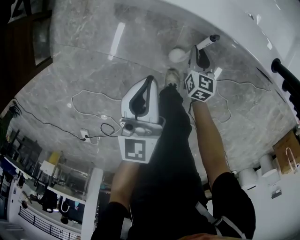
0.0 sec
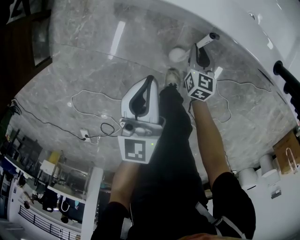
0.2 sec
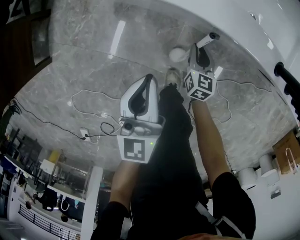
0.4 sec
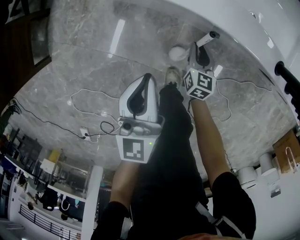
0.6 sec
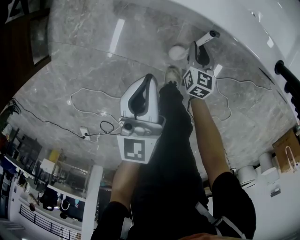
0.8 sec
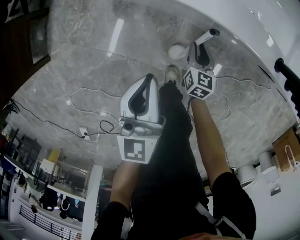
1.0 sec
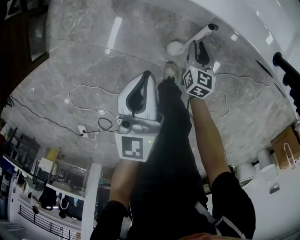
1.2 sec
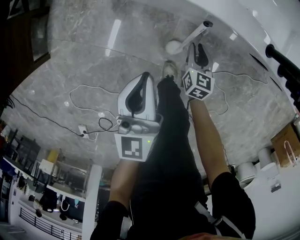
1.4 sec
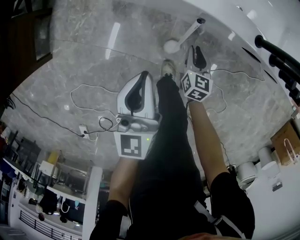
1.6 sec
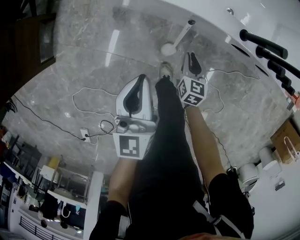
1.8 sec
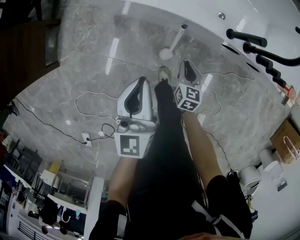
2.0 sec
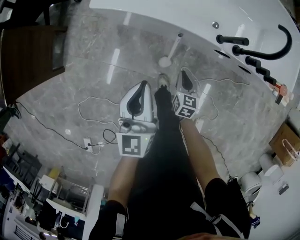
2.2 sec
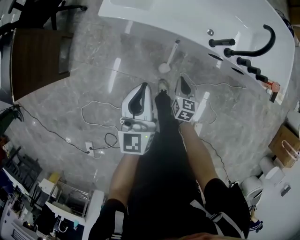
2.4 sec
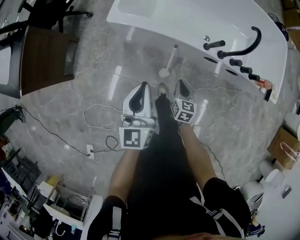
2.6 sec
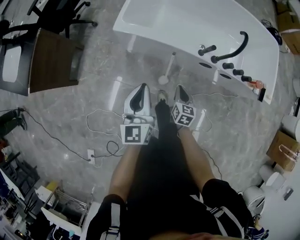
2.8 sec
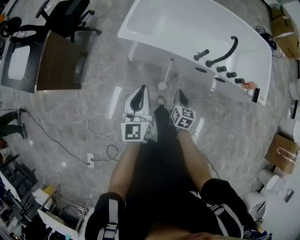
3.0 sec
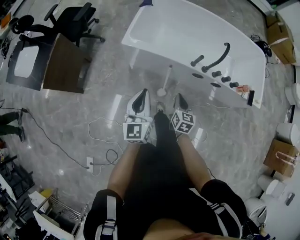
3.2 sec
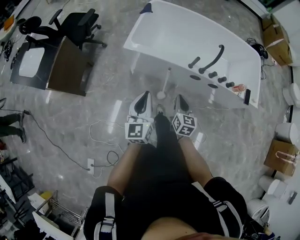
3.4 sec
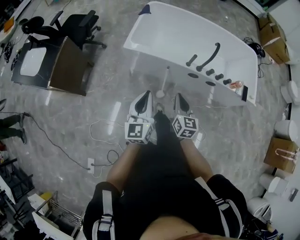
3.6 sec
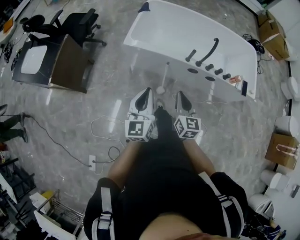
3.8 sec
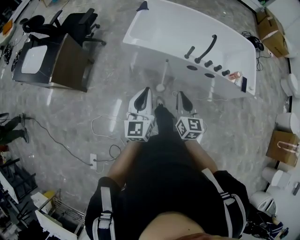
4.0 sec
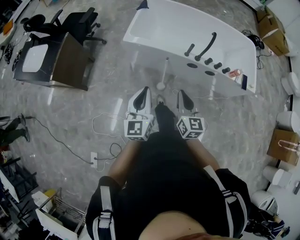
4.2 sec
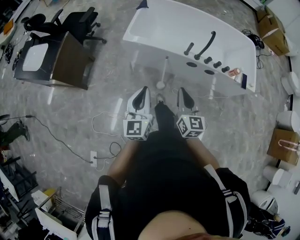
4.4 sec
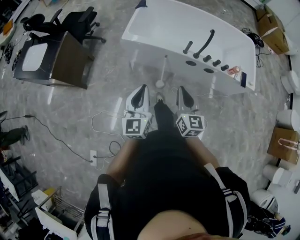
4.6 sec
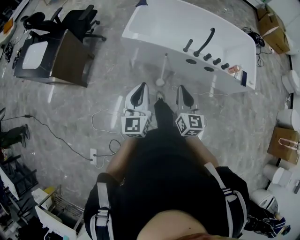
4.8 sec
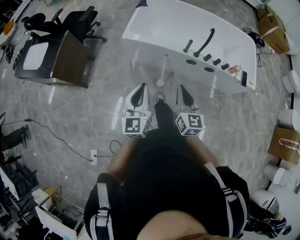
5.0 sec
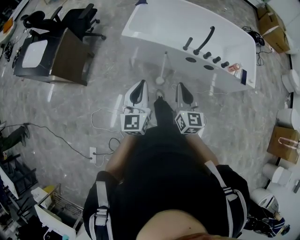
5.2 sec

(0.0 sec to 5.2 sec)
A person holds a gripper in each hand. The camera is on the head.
0.0 sec - 1.8 sec: The right gripper moves upward and backward, approximately 15 cm, while the left gripper goes about 10 cm upward.
1.8 sec - 3.4 sec: The left gripper shifts about 40 cm upward and backward. The right gripper travels upward by approximately 50 cm.
3.4 sec - 5.2 sec: The right gripper moves upward and backward, about 20 cm. The left gripper moves backward and upward, about 15 cm.

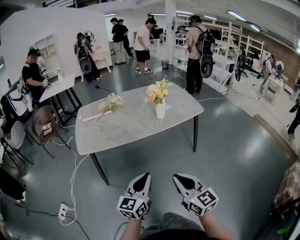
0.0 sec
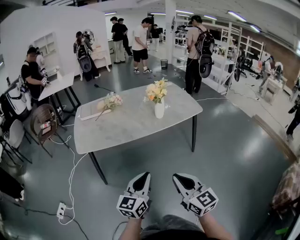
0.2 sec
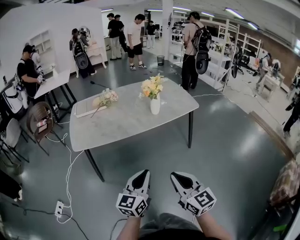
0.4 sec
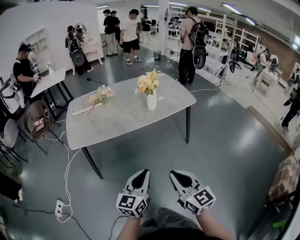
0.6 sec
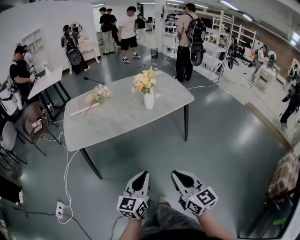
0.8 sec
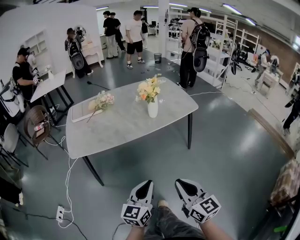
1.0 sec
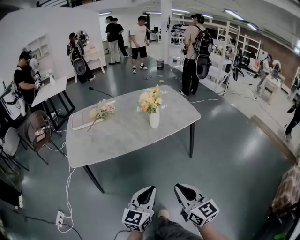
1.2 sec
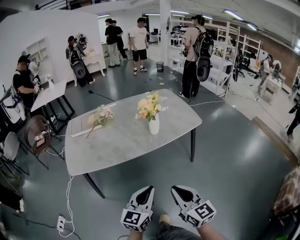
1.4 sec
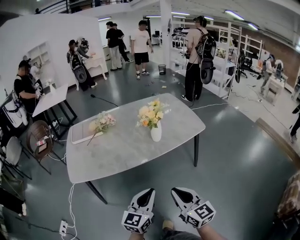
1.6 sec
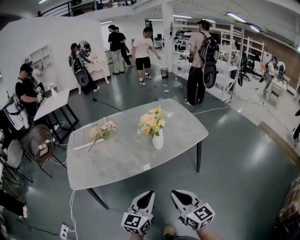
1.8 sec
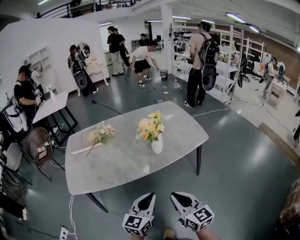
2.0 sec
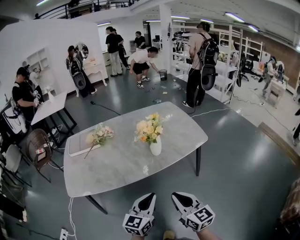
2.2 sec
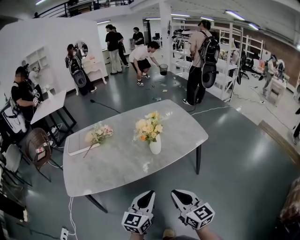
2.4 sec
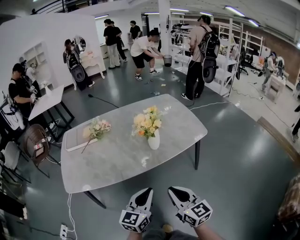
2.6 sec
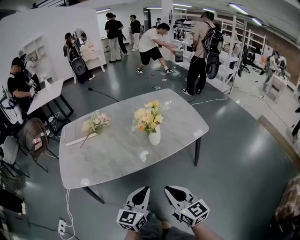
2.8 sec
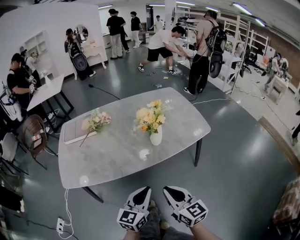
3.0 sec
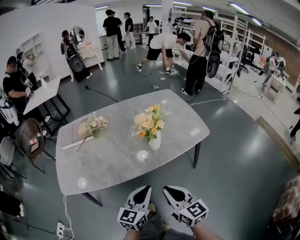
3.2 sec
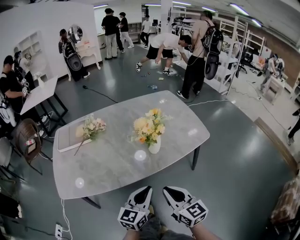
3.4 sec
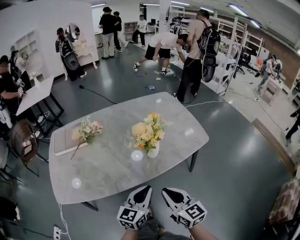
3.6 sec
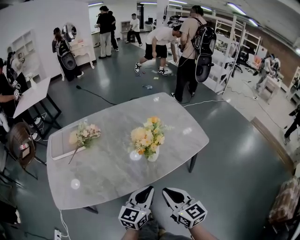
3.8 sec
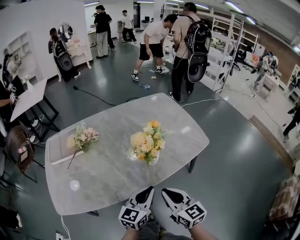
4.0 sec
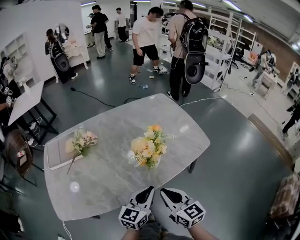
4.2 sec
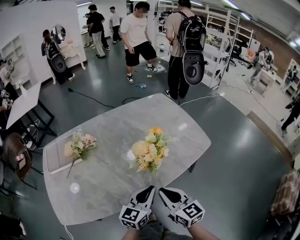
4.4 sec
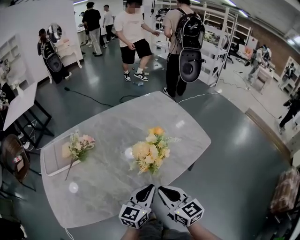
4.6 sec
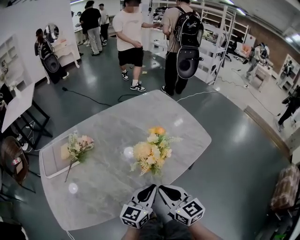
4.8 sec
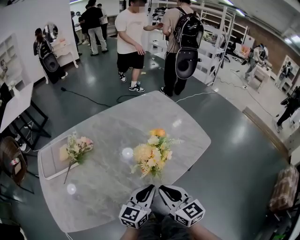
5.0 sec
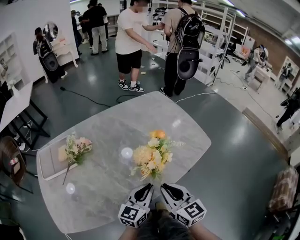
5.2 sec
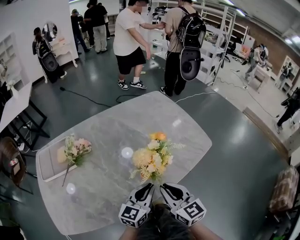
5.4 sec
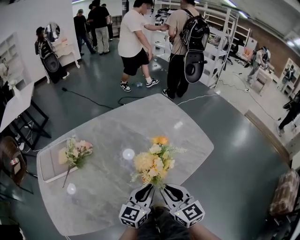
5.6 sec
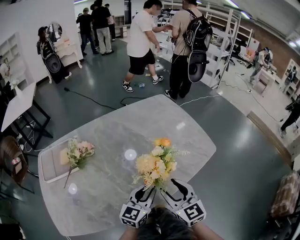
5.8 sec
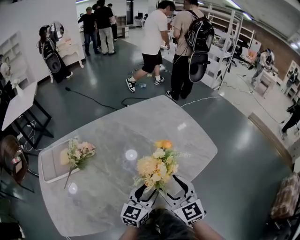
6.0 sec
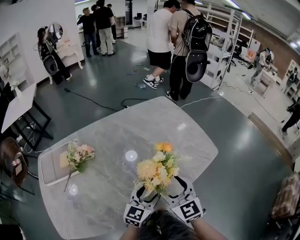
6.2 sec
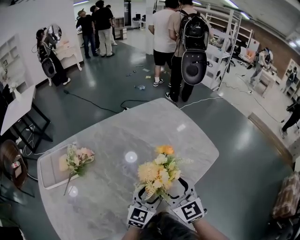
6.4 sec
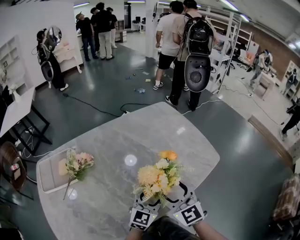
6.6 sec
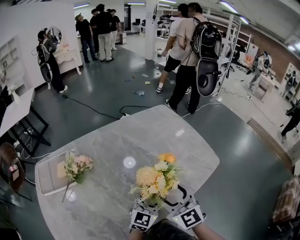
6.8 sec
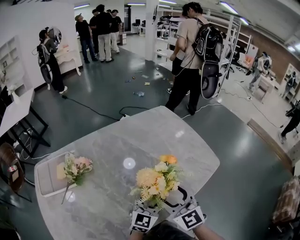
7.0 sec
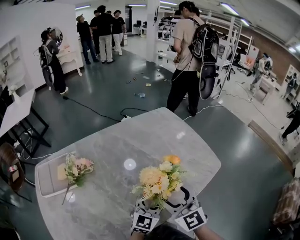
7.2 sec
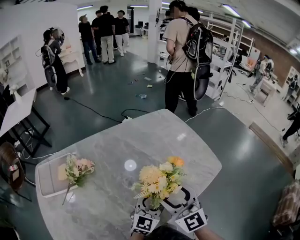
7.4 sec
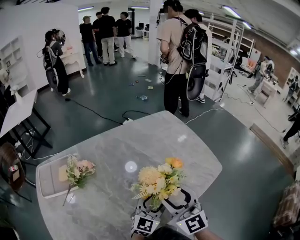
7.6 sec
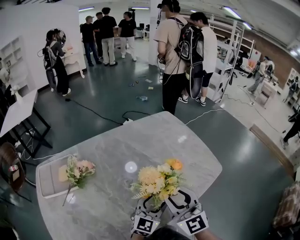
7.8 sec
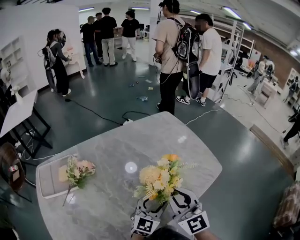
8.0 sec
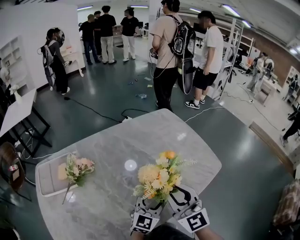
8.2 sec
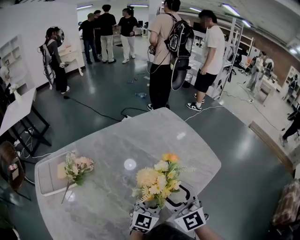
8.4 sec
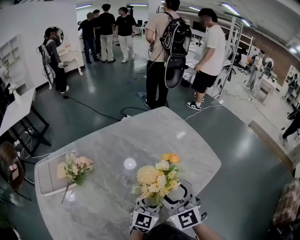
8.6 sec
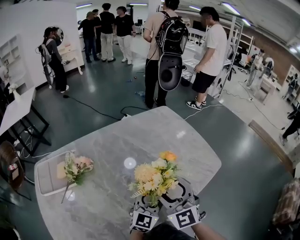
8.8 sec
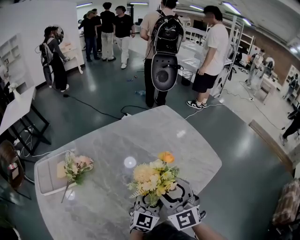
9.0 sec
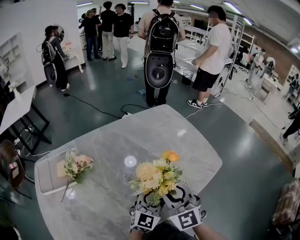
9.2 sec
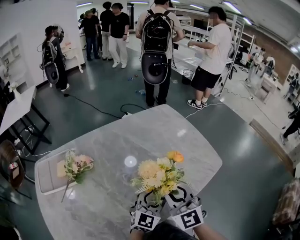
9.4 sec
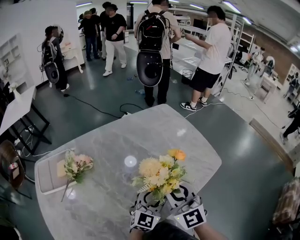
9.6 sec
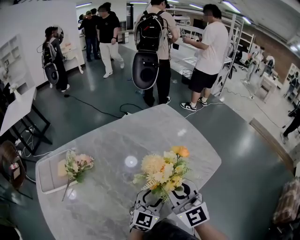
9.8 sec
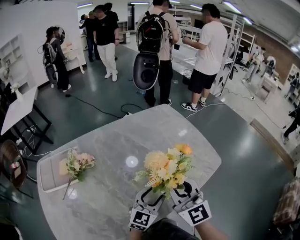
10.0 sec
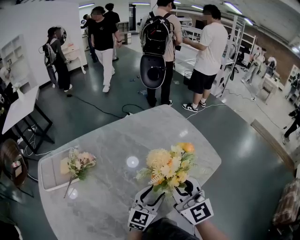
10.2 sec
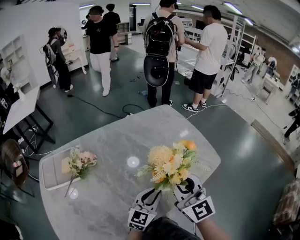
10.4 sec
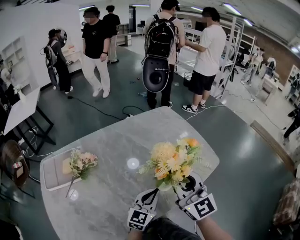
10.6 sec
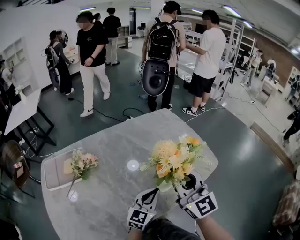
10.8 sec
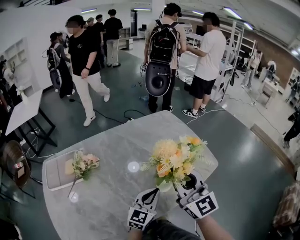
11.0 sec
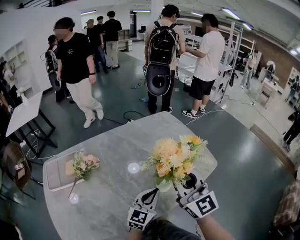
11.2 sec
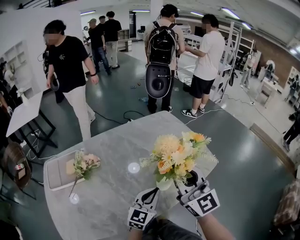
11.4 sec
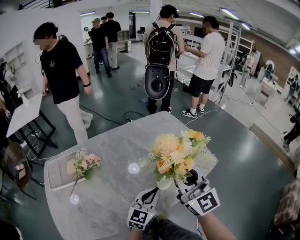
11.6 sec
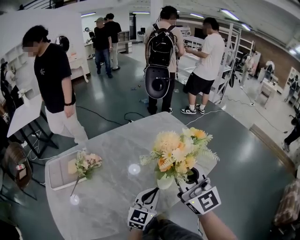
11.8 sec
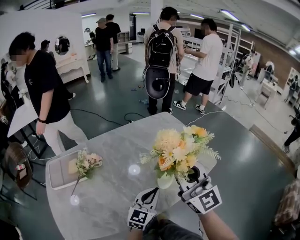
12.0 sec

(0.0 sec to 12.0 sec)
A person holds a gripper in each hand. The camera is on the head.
0.0 sec - 1.6 sec: The right gripper travels forward by some 15 cm. The left gripper goes approximately 15 cm forward and to the right.
1.6 sec - 3.0 sec: Both grippers travel together forward, about 10 cm.
3.0 sec - 4.4 sec: The two grippers go roughly 20 cm forward.
4.4 sec - 6.0 sec: Both grippers travel together forward, roughly 10 cm. The left gripper opens; the right gripper swivels about 20 degrees, and opens.
6.0 sec - 7.6 sec: The two grippers go some 5 cm forward.
7.6 sec - 9.0 sec: The right gripper closes, then opens again.
9.0 sec - 10.4 sec: The left gripper closes. Meanwhile the right gripper shifts roughly 5 cm upward, swivels approximately 20 degrees, and closes up.
10.4 sec - 12.0 sec: The left gripper travels upward by some 5 cm; the right gripper shifts some 10 cm upward.

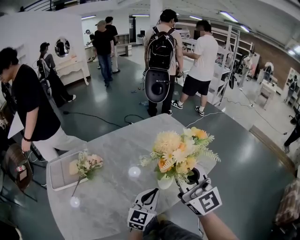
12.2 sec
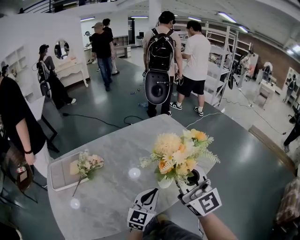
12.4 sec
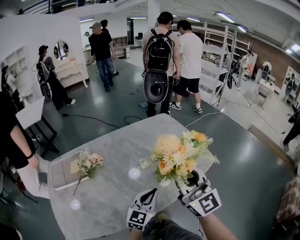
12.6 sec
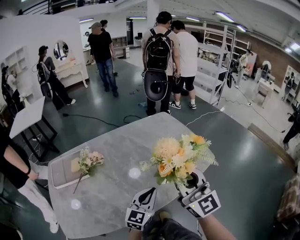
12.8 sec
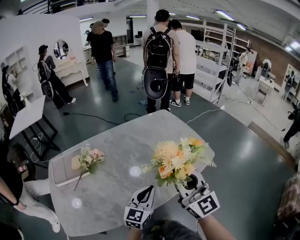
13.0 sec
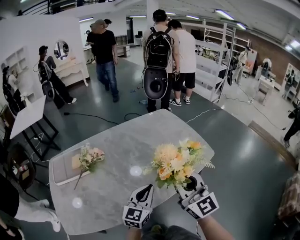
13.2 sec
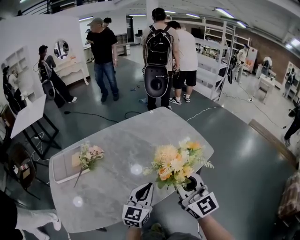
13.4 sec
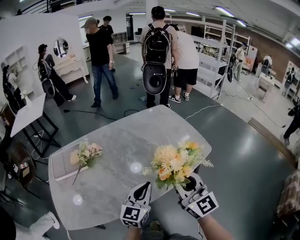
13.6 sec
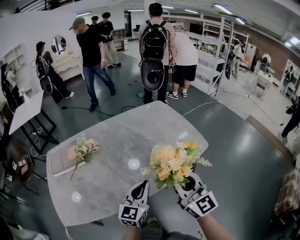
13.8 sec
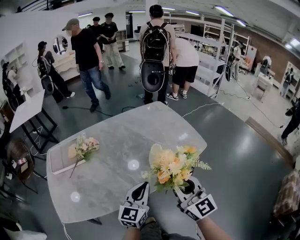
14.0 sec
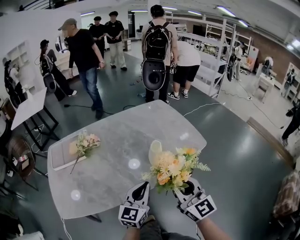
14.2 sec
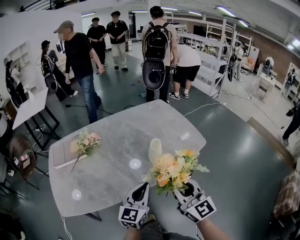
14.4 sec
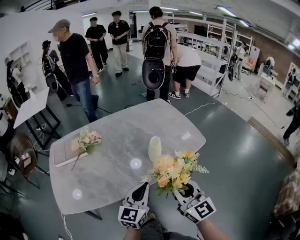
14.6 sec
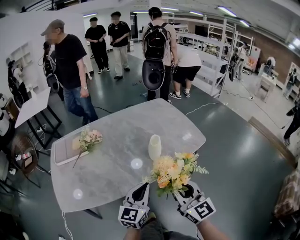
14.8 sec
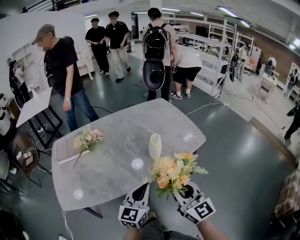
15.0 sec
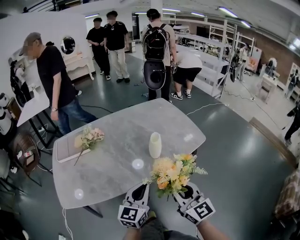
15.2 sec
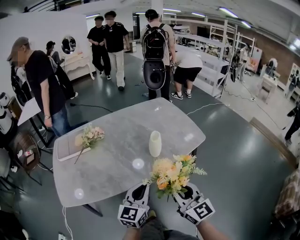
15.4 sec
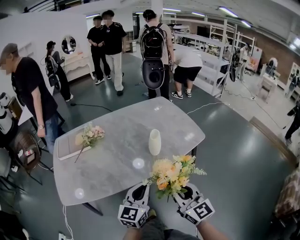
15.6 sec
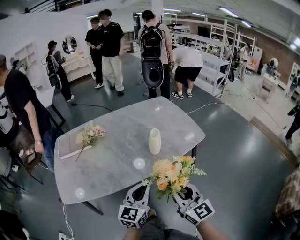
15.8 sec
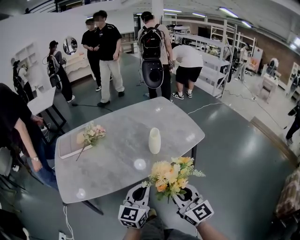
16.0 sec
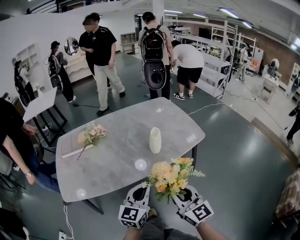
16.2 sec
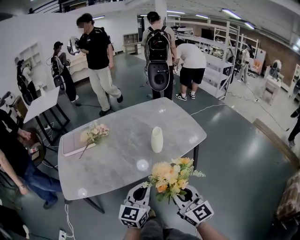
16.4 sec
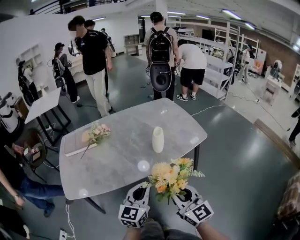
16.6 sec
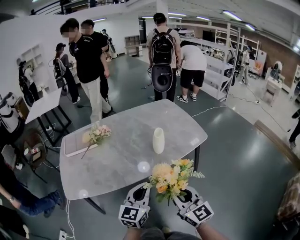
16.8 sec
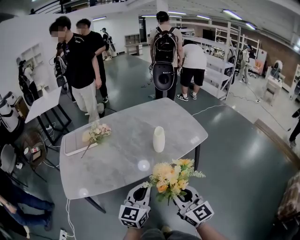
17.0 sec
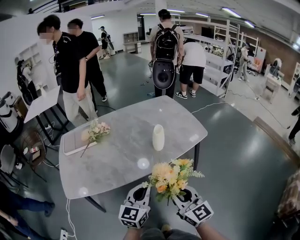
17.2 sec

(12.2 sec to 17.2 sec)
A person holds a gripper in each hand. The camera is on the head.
12.2 sec - 13.8 sec: The right gripper shifts approximately 15 cm backward and downward; the left gripper travels backward by about 10 cm.
13.8 sec - 15.6 sec: The grippers both shift backward by some 15 cm.
15.6 sec - 17.2 sec: The grippers make only small movements.

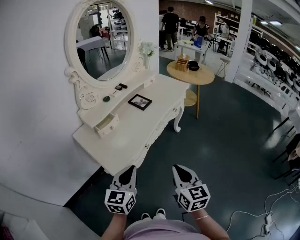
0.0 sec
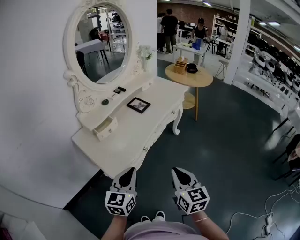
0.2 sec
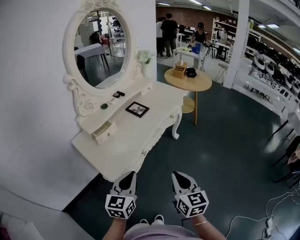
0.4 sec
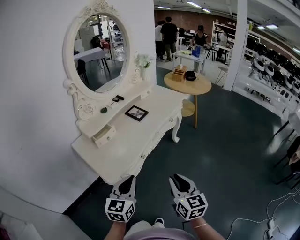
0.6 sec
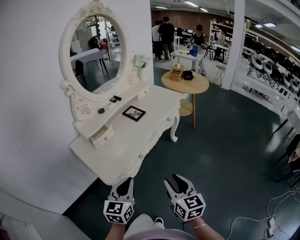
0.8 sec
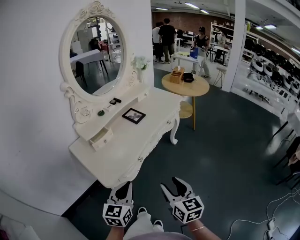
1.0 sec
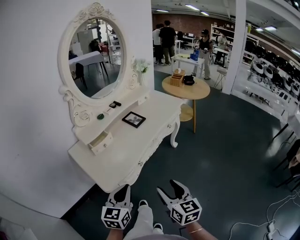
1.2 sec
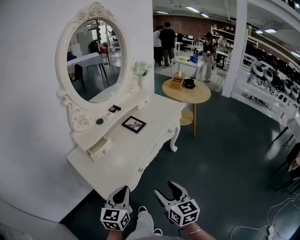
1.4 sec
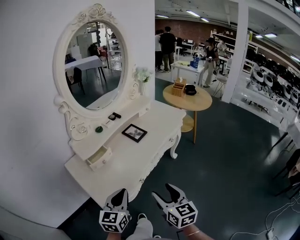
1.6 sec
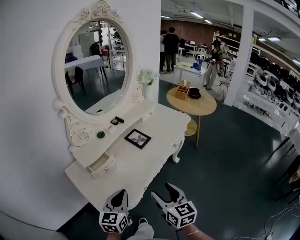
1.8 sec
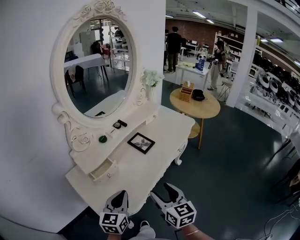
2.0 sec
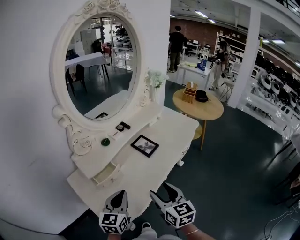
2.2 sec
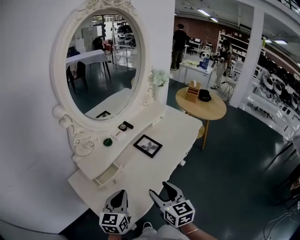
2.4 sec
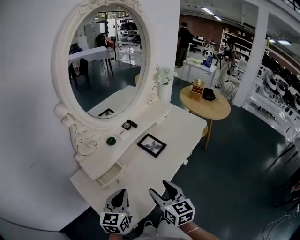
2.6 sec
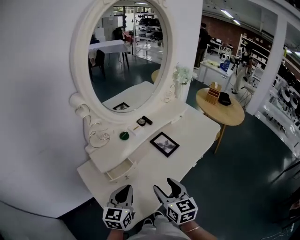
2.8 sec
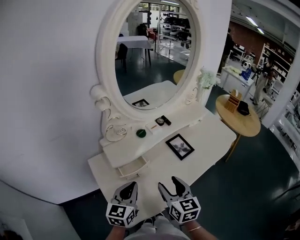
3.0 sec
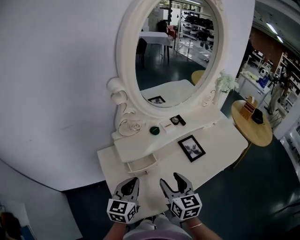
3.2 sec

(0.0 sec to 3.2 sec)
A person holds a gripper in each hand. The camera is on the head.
0.0 sec - 1.6 sec: Both grippers move forward, roughly 10 cm. The right gripper opens.
1.6 sec - 3.2 sec: The two grippers go approximately 25 cm forward and to the left. The left gripper changes its angle by some 20 degrees, while the right gripper swivels some 20 degrees.
